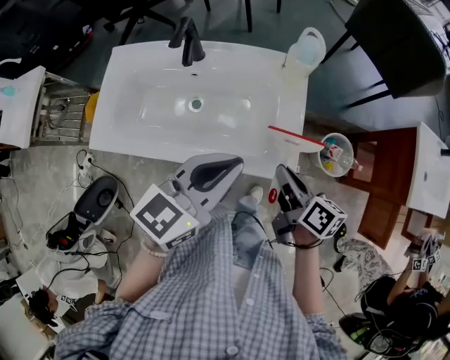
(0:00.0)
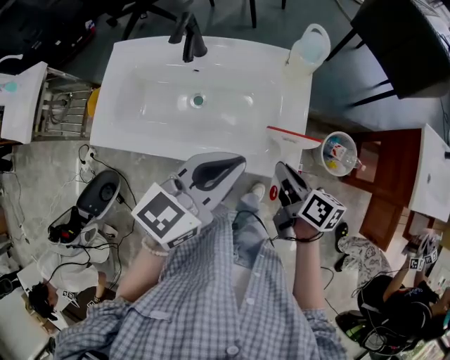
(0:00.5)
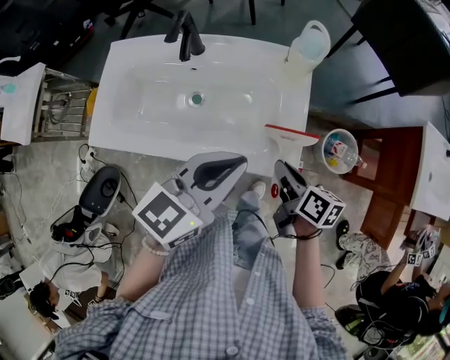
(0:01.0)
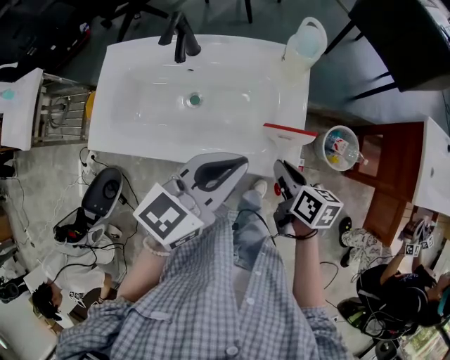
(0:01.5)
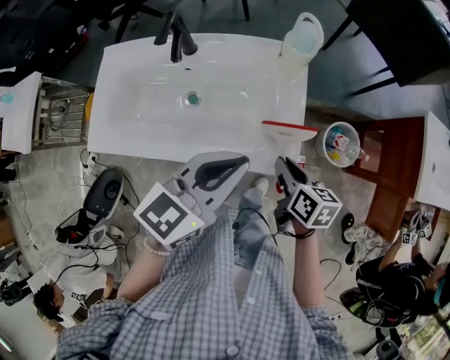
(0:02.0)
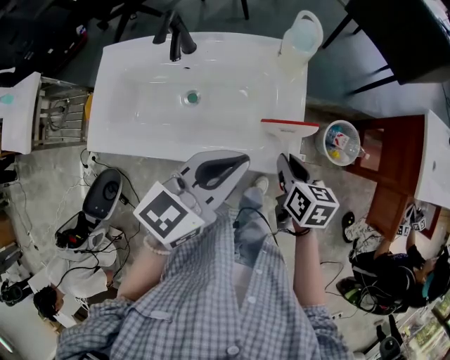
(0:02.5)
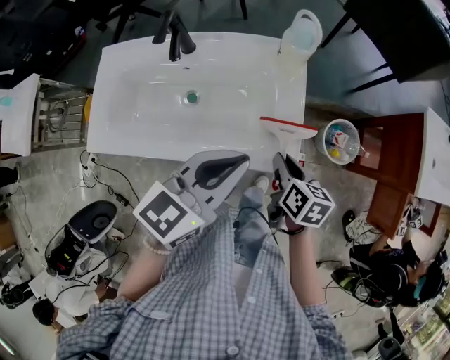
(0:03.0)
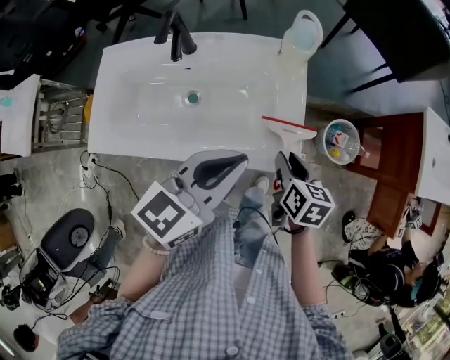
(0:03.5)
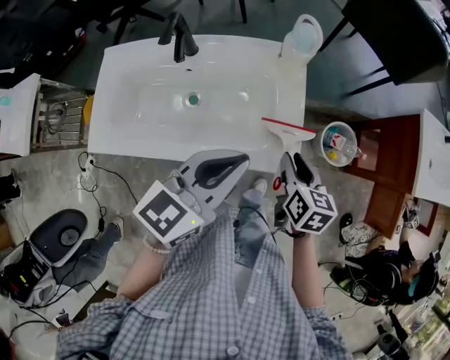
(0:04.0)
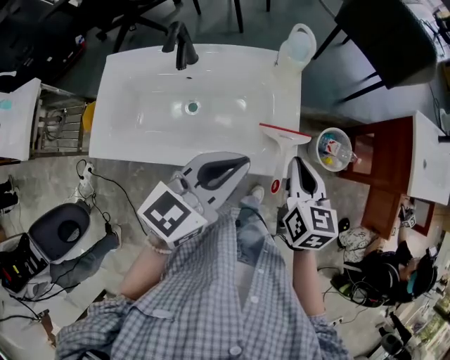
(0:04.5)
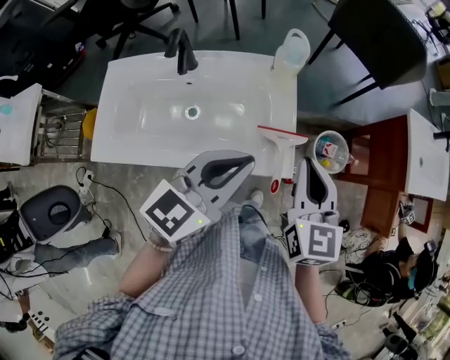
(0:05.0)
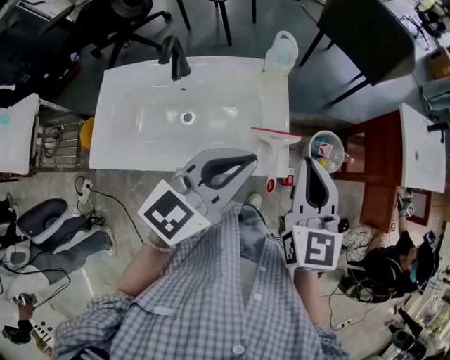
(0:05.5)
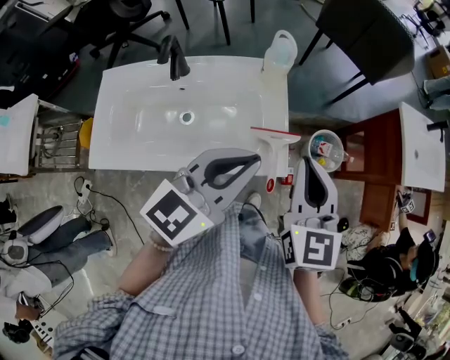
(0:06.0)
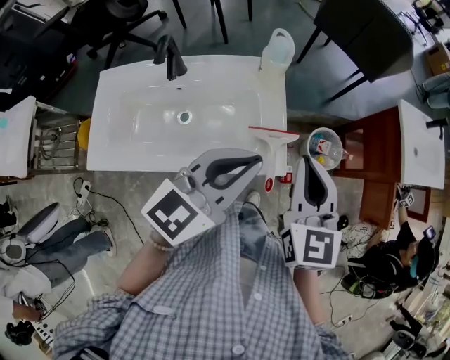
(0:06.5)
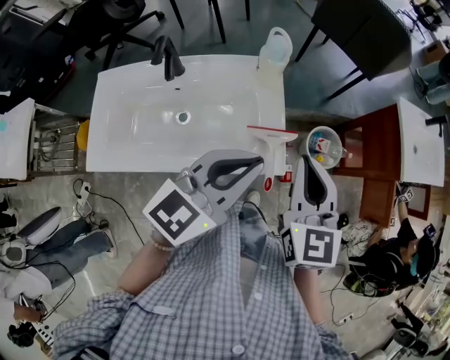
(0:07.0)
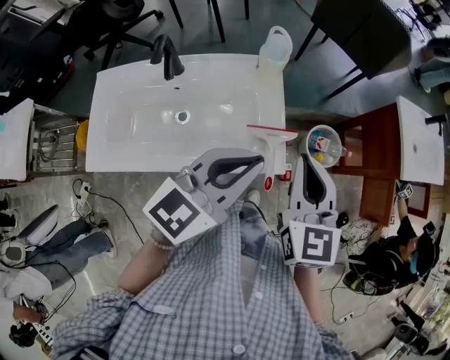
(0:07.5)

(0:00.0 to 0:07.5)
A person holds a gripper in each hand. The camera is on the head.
0:00.0 - 0:02.0: The grippers move only a little.
0:02.0 - 0:04.0: There are only small adjustments of the grippers.
0:04.0 - 0:05.5: The left gripper heads upward, covering about 5 cm, while the right gripper heads upward, covering approximately 20 cm, rotates roughly 40 degrees, and closes its fingers.
0:05.5 - 0:07.5: The grippers stay close to where they were, moving slightly.

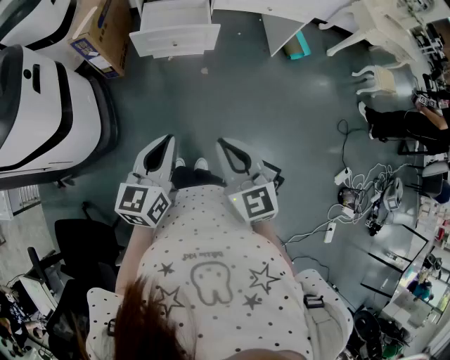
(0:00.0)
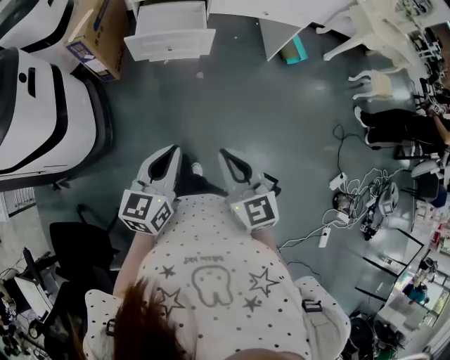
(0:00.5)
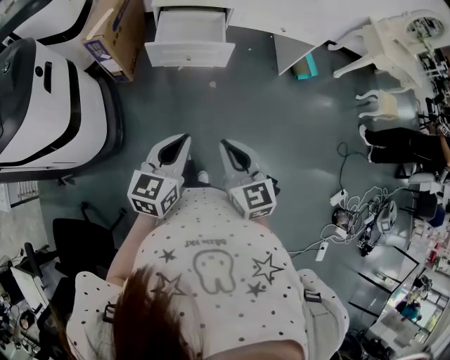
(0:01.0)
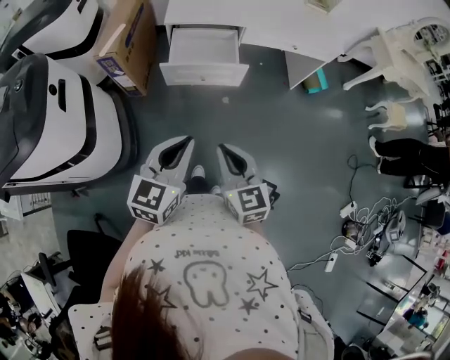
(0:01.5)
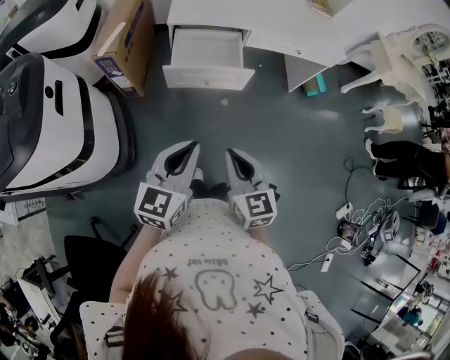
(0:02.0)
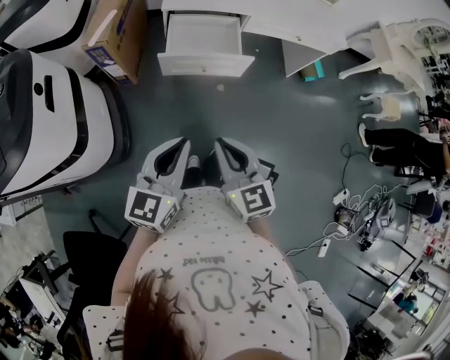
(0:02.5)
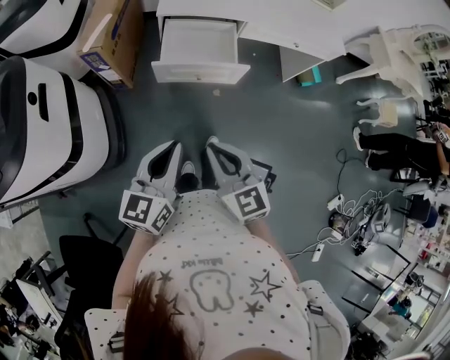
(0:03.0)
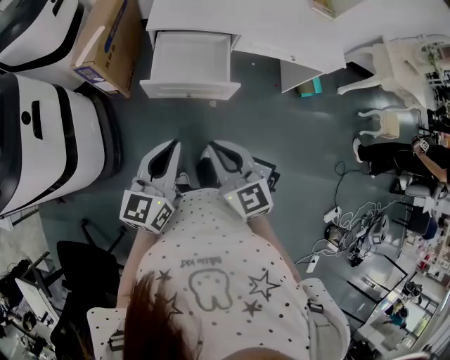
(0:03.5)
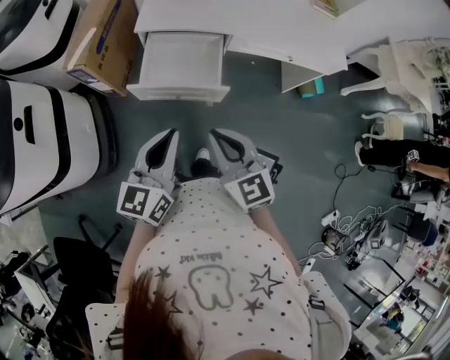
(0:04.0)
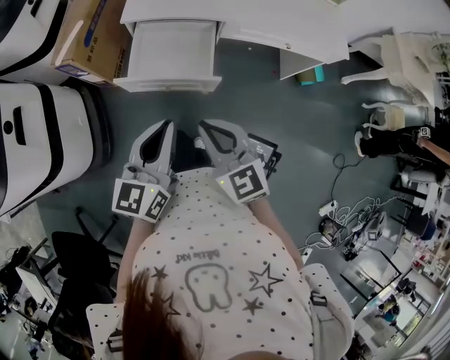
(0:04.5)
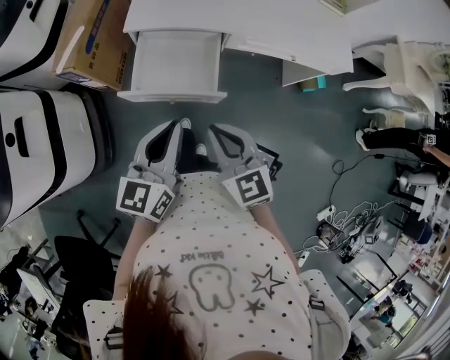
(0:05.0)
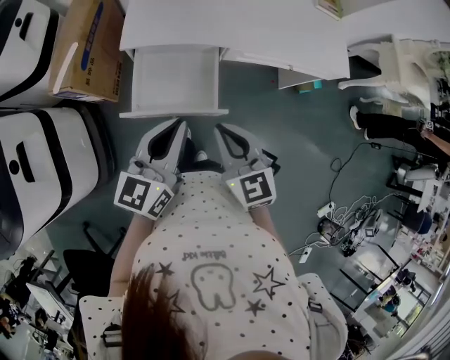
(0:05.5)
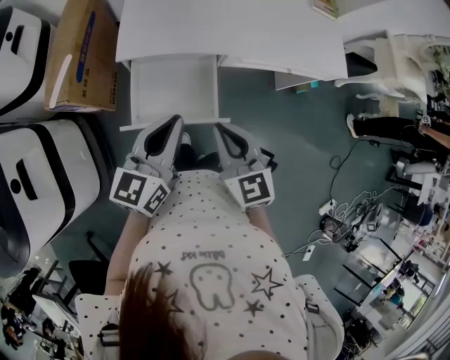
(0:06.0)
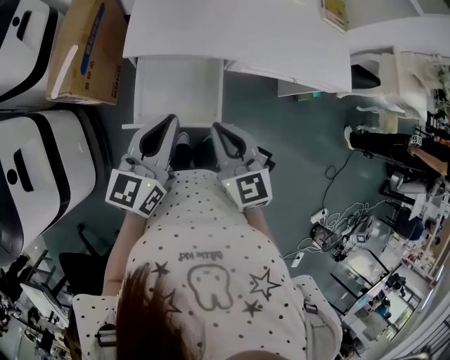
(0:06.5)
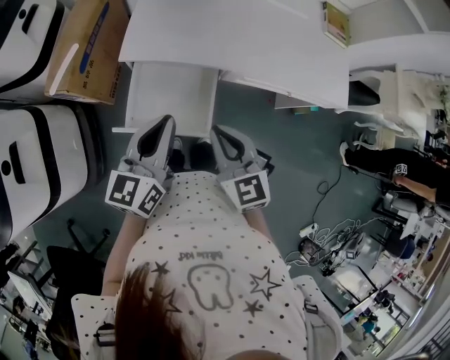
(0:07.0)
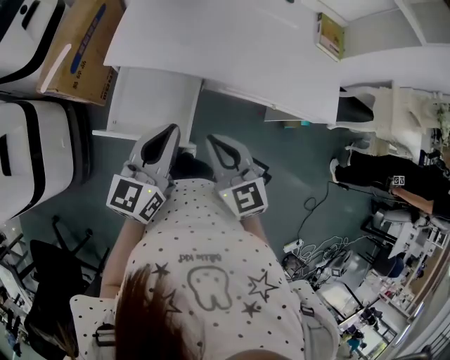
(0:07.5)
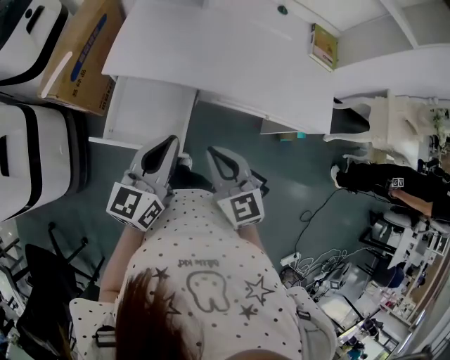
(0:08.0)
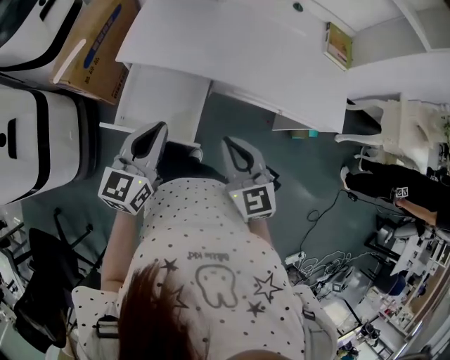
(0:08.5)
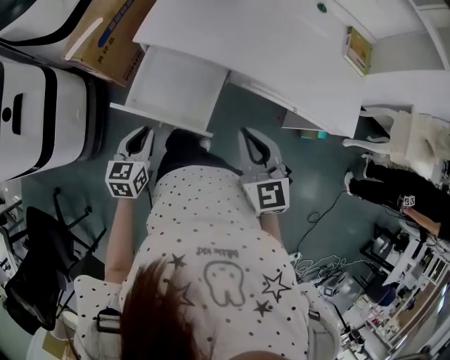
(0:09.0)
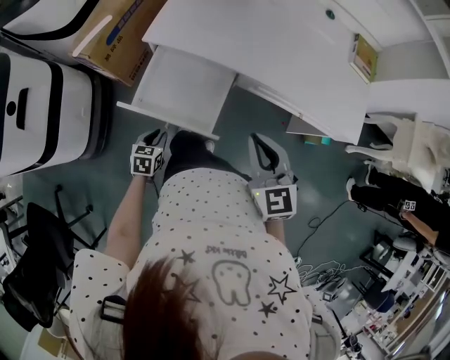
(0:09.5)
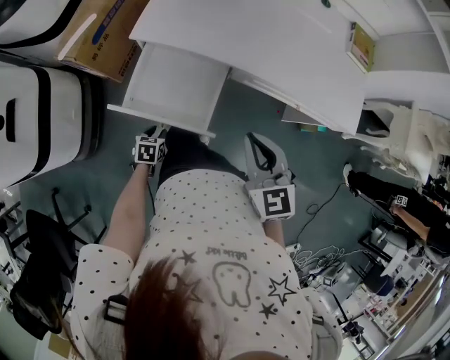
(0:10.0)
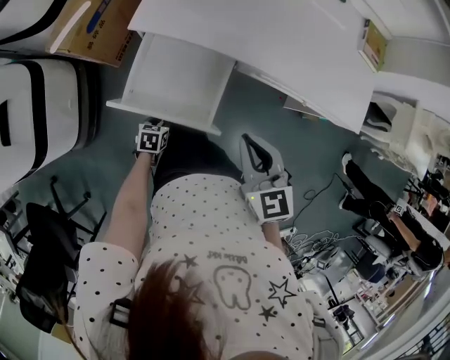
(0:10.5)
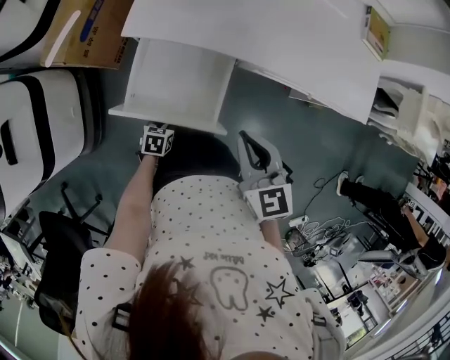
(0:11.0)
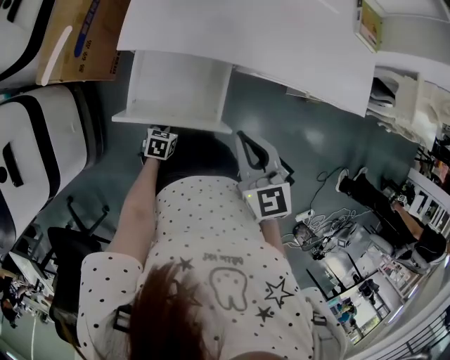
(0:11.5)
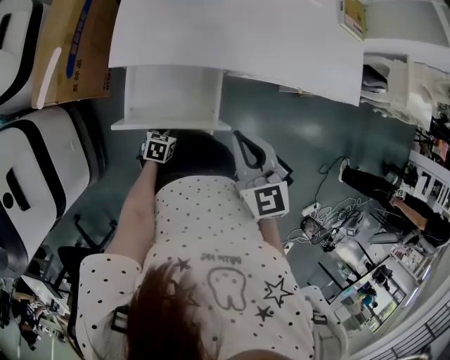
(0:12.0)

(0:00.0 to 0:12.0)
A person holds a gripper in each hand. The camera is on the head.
0:00.0 - 0:02.0: Both grippers move forward and to the left, approximately 15 cm.
0:02.0 - 0:04.0: Both grippers move forward and to the right, roughly 20 cm.
0:04.0 - 0:06.0: Both grippers travel together forward, roughly 20 cm.
0:06.0 - 0:08.0: Both grippers move to the right, approximately 10 cm.
0:08.0 - 0:10.0: The left gripper shifts approximately 40 cm downward, angles its fingers downward, by approximately 60 degrees, and opens up.
0:10.0 - 0:12.0: The left gripper is displaced forward by roughly 5 cm, and changes its angle by about 20 degrees, while the right gripper shifts about 10 cm to the left.

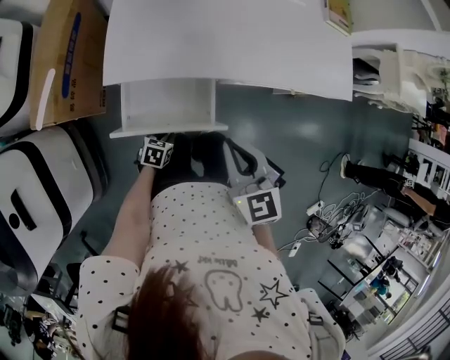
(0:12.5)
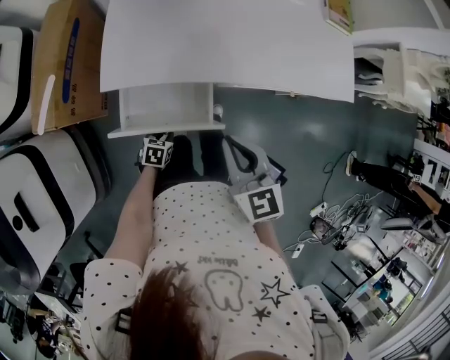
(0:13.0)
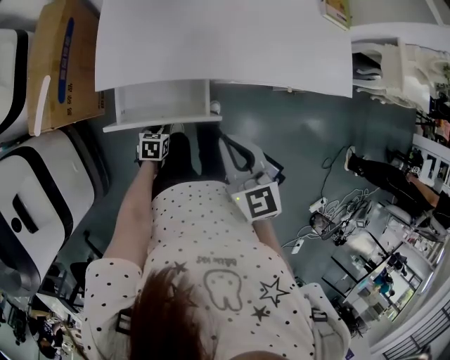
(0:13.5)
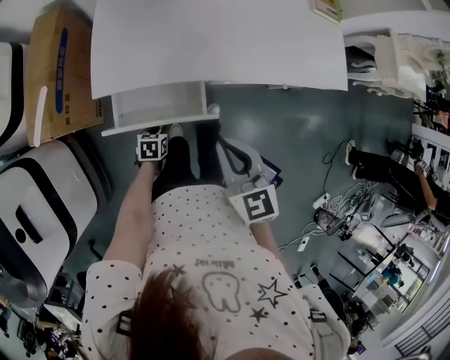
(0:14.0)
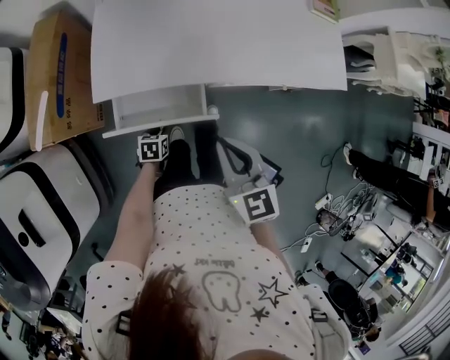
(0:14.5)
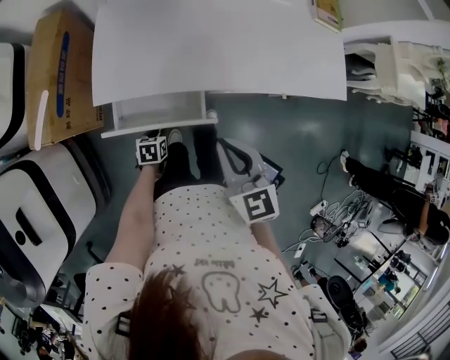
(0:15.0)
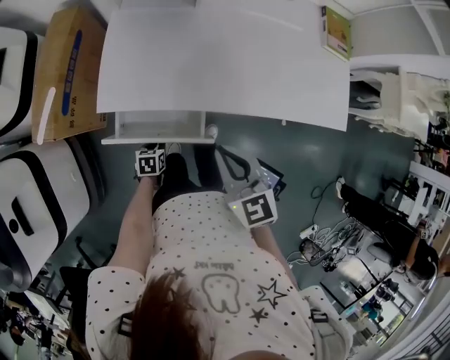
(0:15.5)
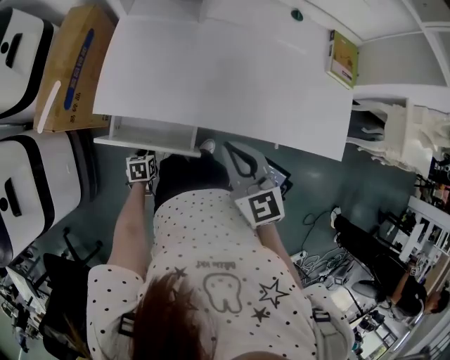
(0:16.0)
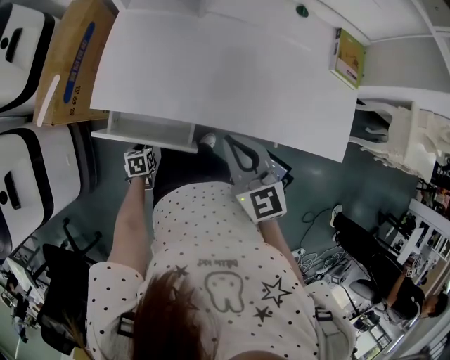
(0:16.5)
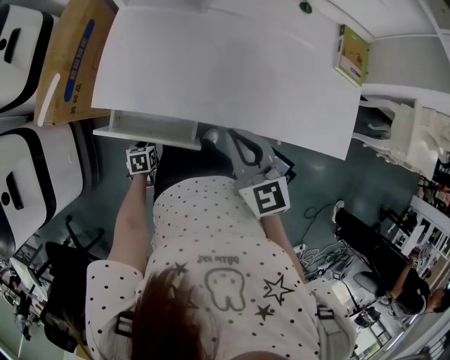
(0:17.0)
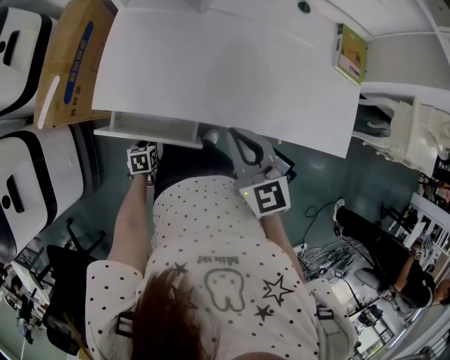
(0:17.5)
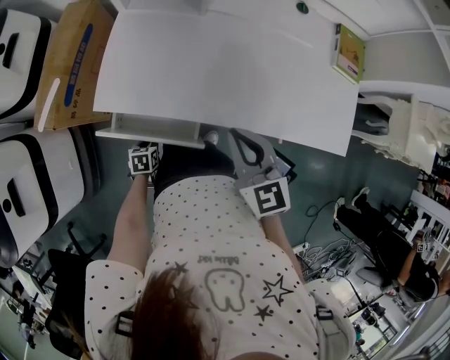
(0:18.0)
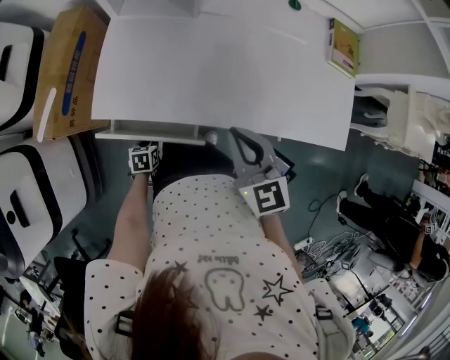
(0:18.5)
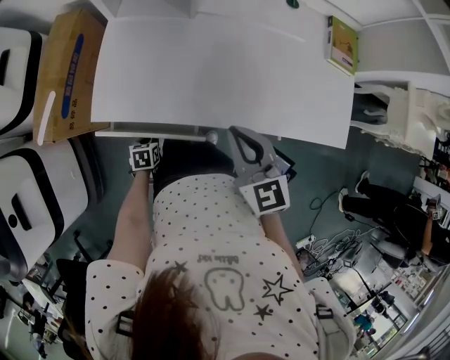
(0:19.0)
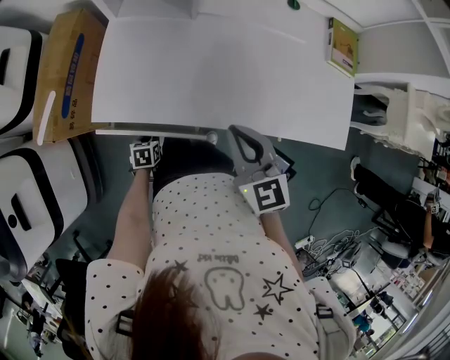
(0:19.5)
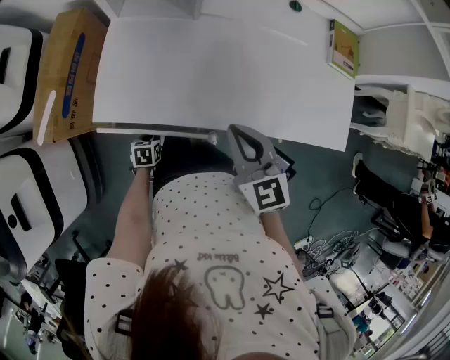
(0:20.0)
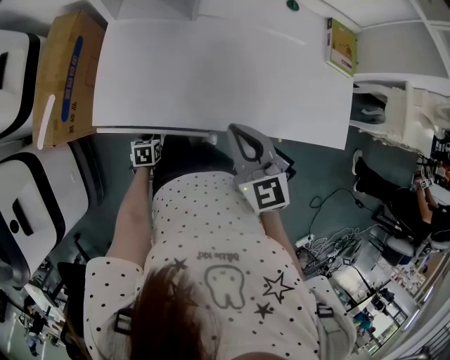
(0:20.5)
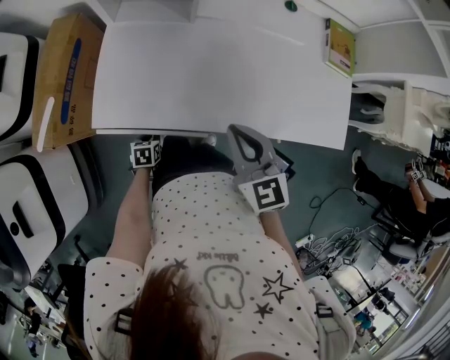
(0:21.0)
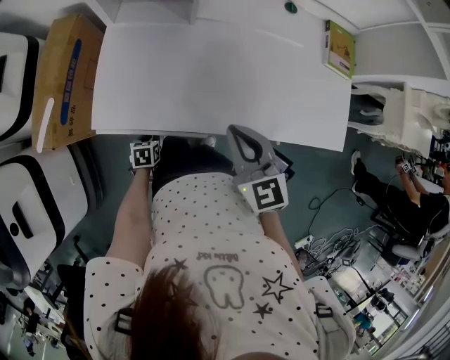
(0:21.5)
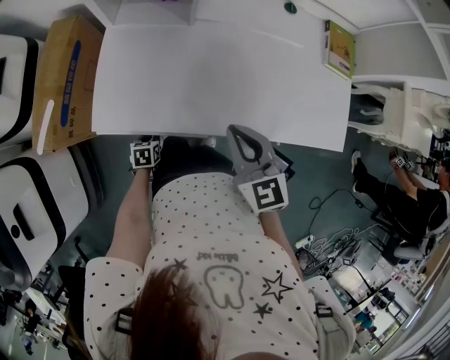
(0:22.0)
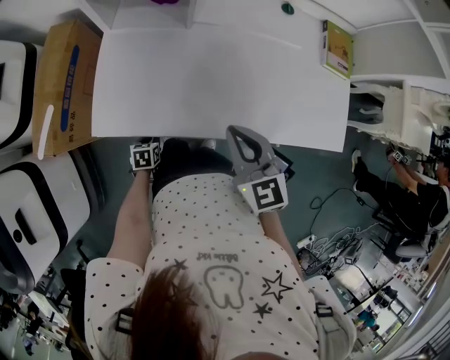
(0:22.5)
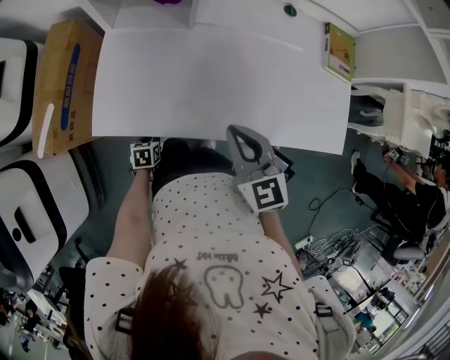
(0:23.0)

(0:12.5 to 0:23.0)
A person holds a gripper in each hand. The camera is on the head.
0:12.5 - 0:14.5: The left gripper moves forward, about 5 cm.
0:14.5 - 0:16.5: The left gripper changes its angle by roughly 30 degrees. Meanwhile the right gripper shifts by some 15 cm, and turns by roughly 20 degrees.
0:16.5 - 0:19.0: The grippers stay close to where they were, moving slightly.
0:19.0 - 0:23.0: There are only small adjustments of the grippers.
